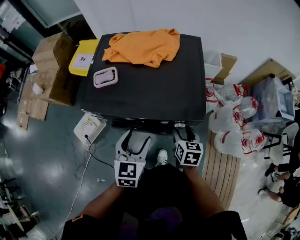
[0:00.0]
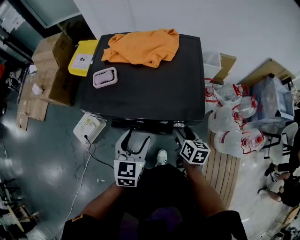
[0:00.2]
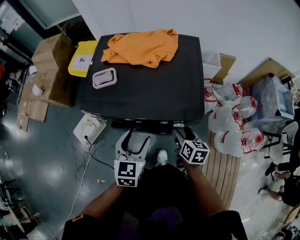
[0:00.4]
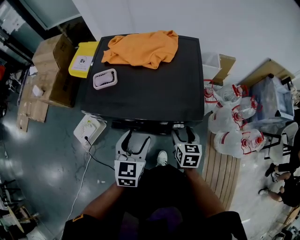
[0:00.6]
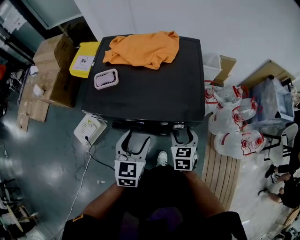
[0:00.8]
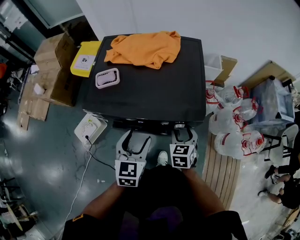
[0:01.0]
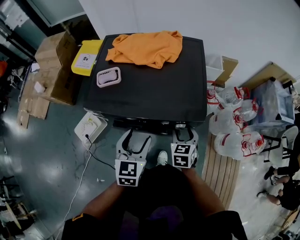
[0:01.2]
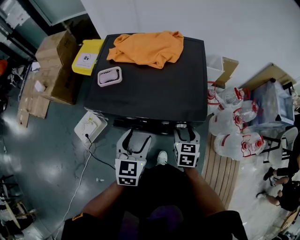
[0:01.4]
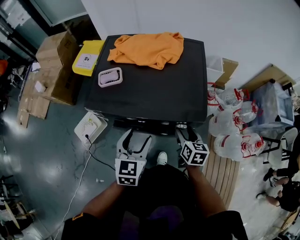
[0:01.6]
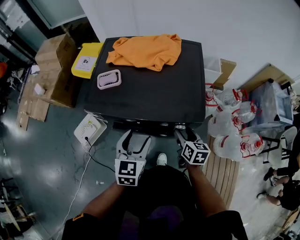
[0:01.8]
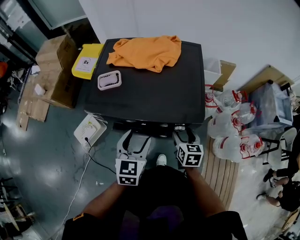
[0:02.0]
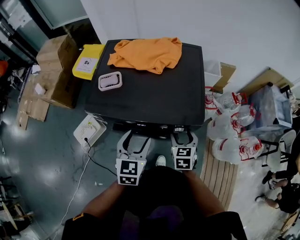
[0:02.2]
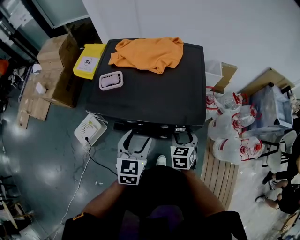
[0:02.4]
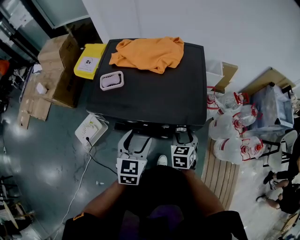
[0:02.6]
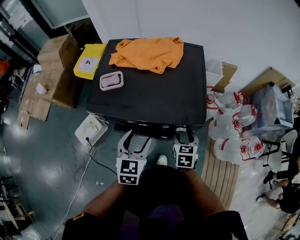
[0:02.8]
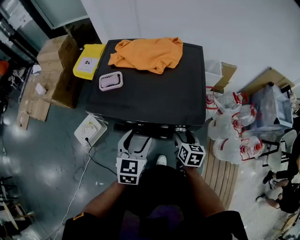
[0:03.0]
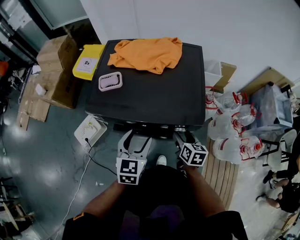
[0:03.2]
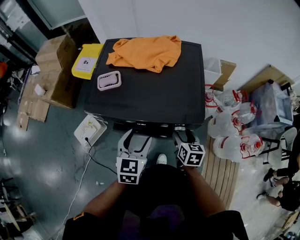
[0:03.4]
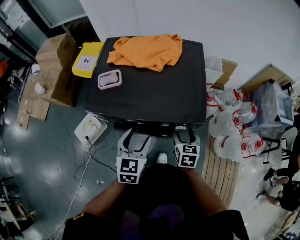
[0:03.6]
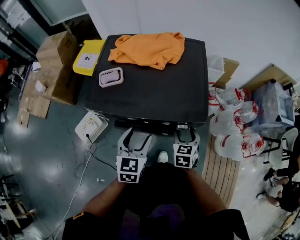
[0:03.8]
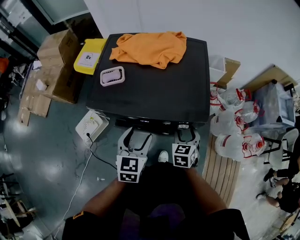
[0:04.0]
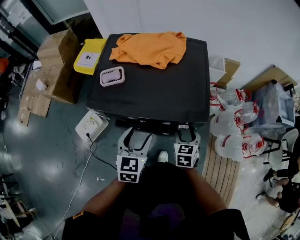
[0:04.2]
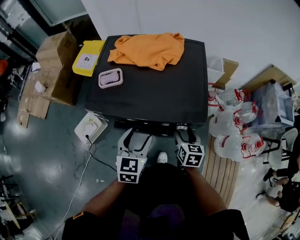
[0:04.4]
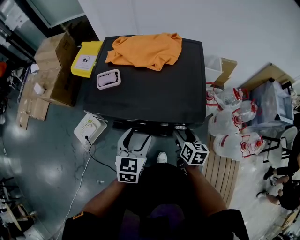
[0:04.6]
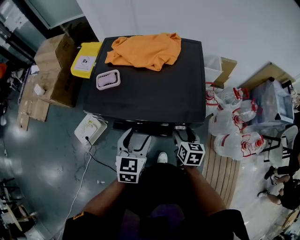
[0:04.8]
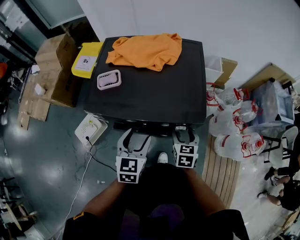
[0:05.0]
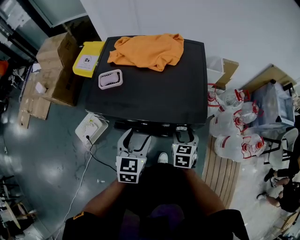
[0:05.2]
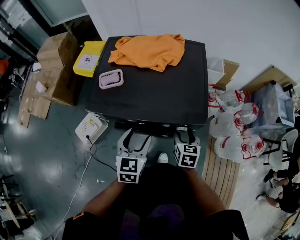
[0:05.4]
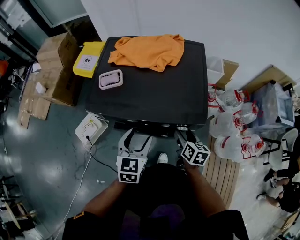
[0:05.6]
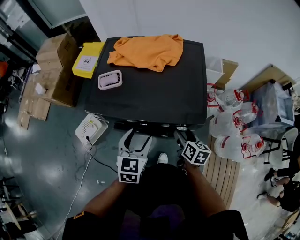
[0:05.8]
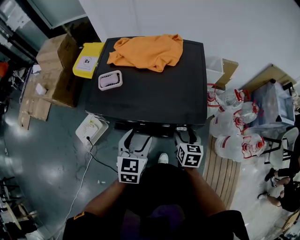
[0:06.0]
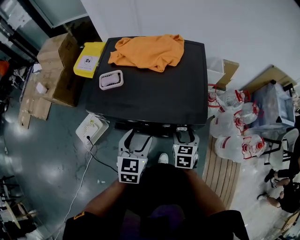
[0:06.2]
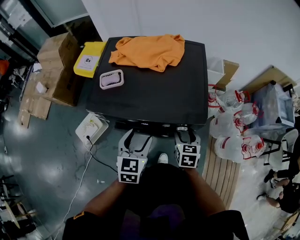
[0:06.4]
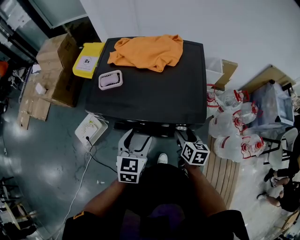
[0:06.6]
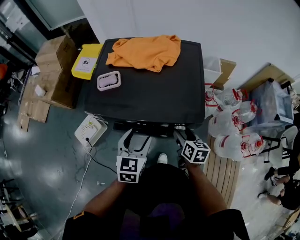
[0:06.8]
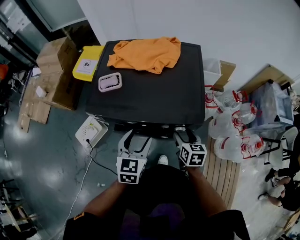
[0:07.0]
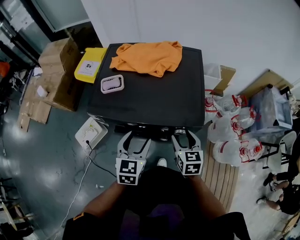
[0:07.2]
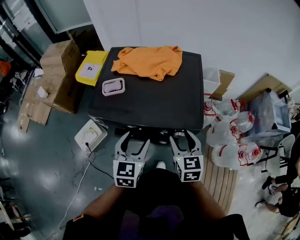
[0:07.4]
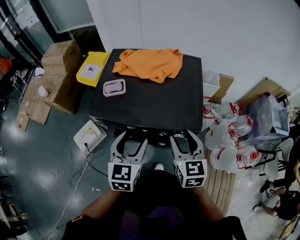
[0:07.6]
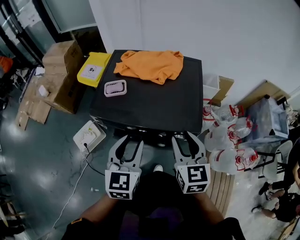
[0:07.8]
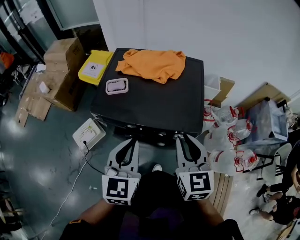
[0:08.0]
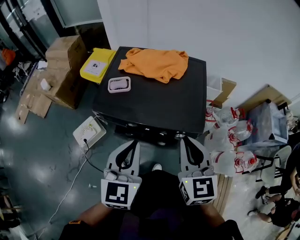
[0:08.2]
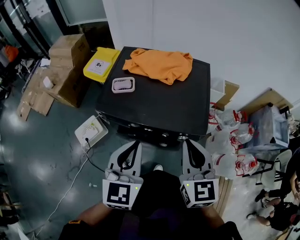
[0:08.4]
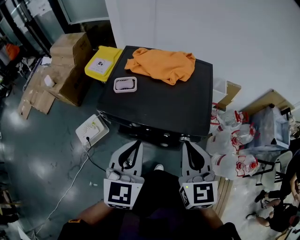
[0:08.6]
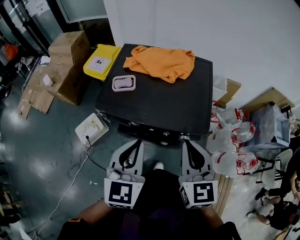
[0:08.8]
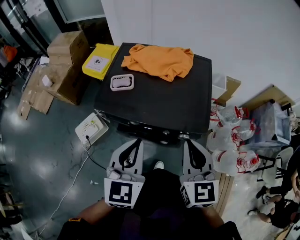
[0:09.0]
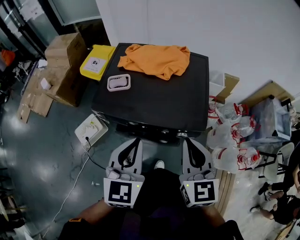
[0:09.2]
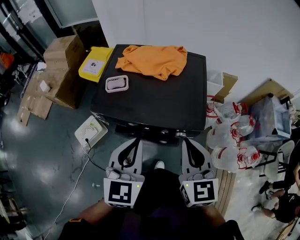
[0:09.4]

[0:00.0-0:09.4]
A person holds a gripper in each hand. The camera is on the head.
0:04.8 to 0:06.2: The right gripper rotates roughly 20 degrees.
0:06.2 to 0:07.8: The left gripper heads upward, covering about 10 cm, while the right gripper shifts some 20 cm upward, and rotates some 20 degrees.
0:07.8 to 0:09.4: The right gripper shifts by about 5 cm, and closes up. The left gripper closes up.

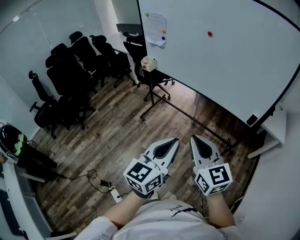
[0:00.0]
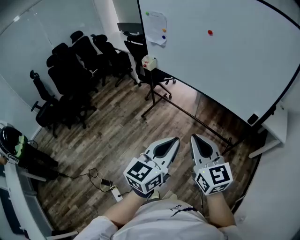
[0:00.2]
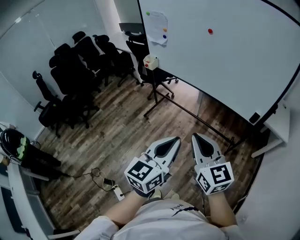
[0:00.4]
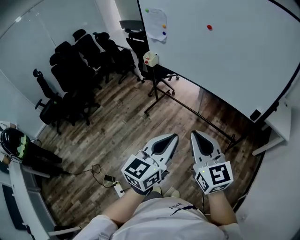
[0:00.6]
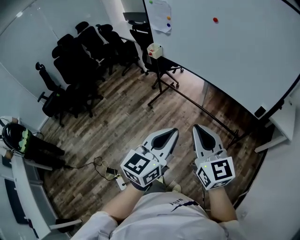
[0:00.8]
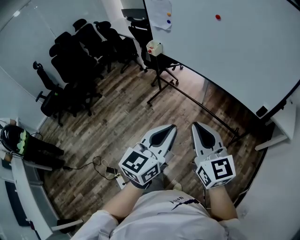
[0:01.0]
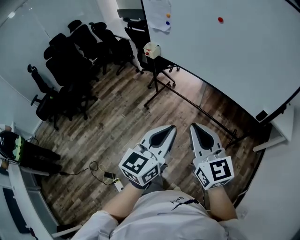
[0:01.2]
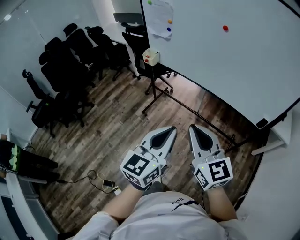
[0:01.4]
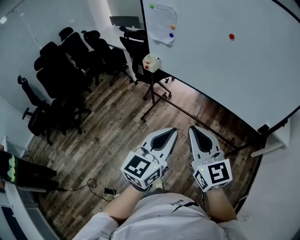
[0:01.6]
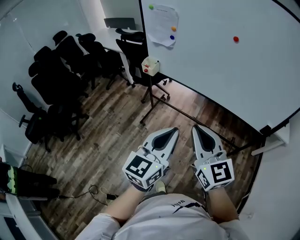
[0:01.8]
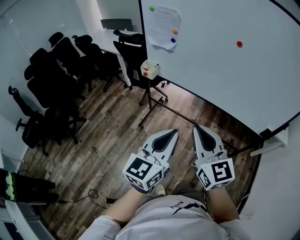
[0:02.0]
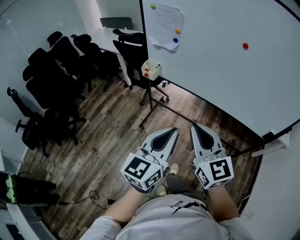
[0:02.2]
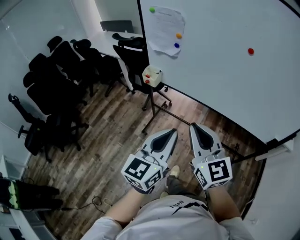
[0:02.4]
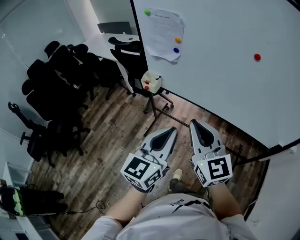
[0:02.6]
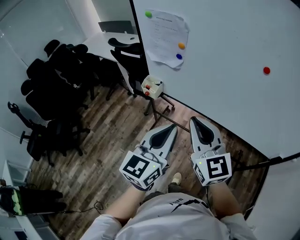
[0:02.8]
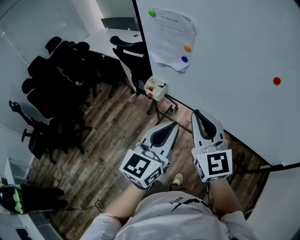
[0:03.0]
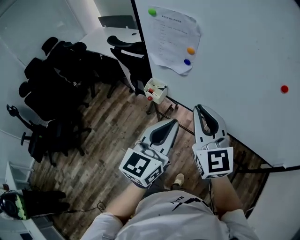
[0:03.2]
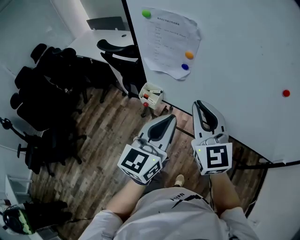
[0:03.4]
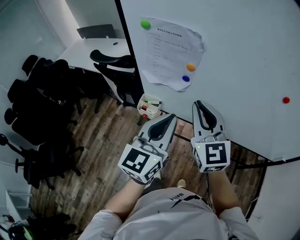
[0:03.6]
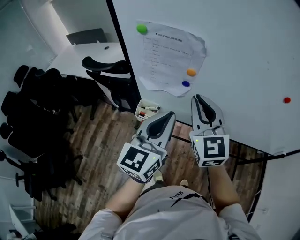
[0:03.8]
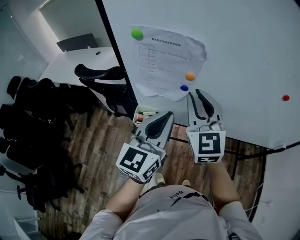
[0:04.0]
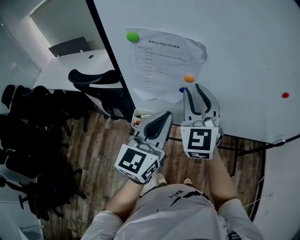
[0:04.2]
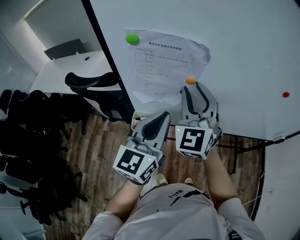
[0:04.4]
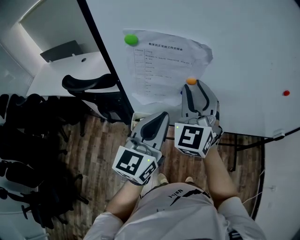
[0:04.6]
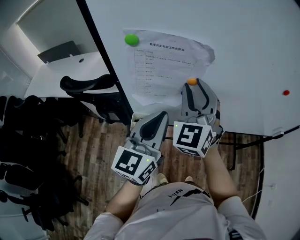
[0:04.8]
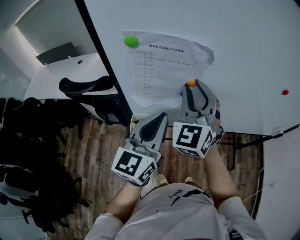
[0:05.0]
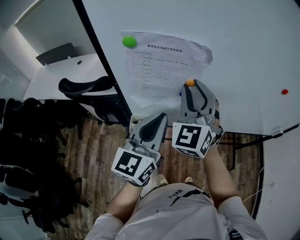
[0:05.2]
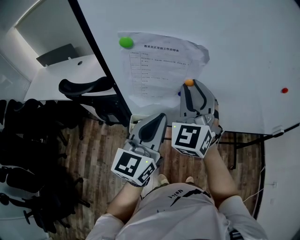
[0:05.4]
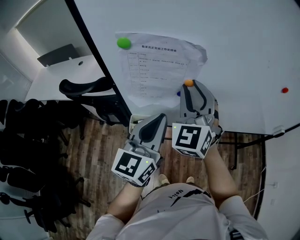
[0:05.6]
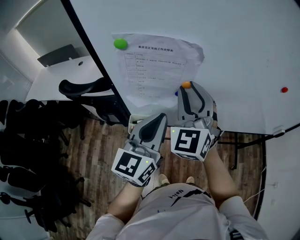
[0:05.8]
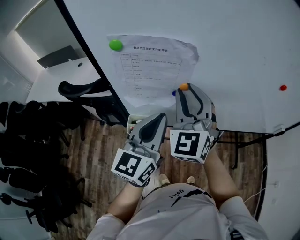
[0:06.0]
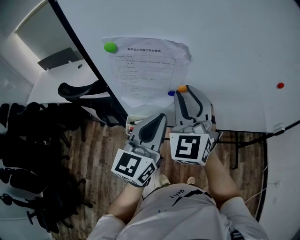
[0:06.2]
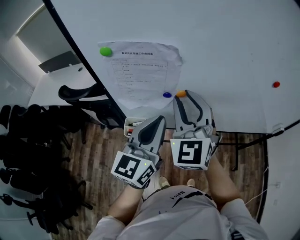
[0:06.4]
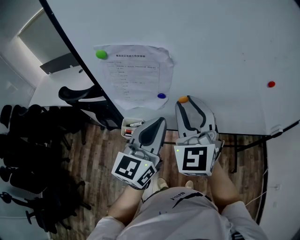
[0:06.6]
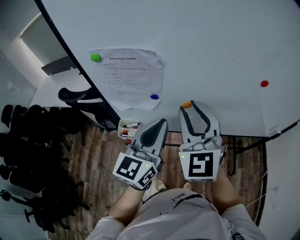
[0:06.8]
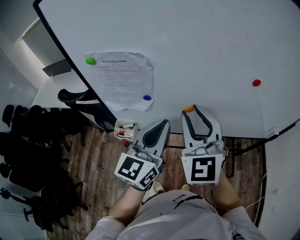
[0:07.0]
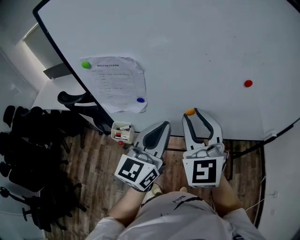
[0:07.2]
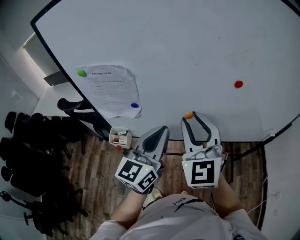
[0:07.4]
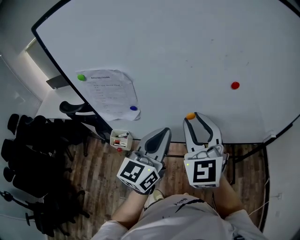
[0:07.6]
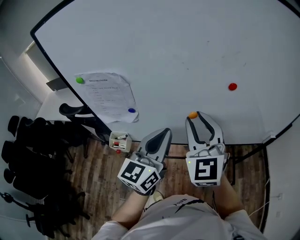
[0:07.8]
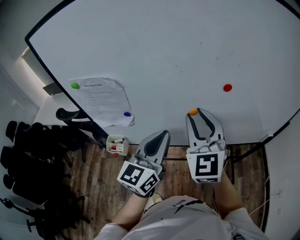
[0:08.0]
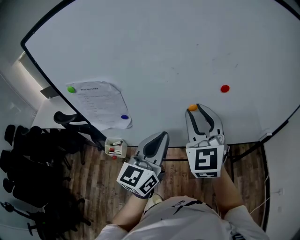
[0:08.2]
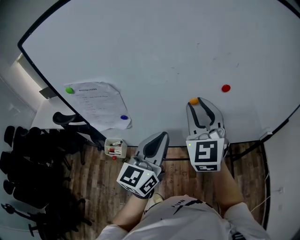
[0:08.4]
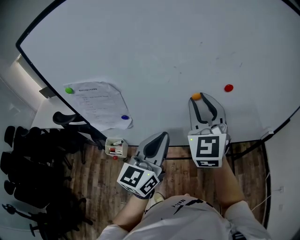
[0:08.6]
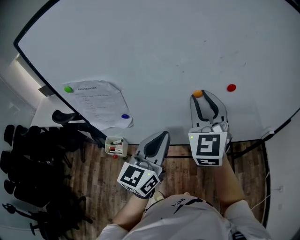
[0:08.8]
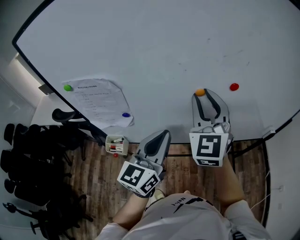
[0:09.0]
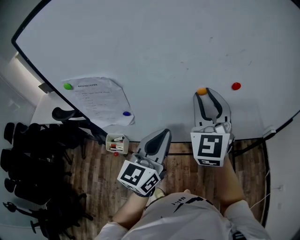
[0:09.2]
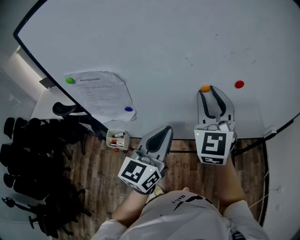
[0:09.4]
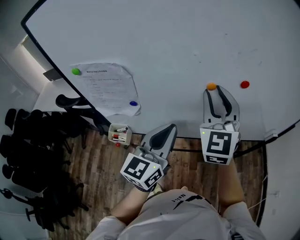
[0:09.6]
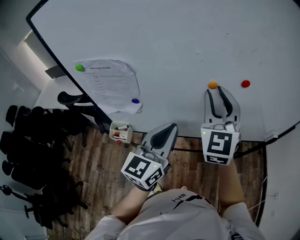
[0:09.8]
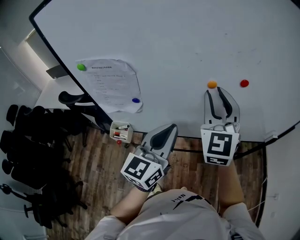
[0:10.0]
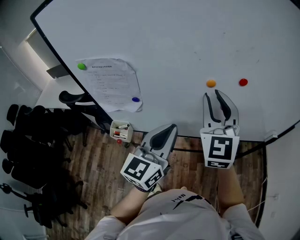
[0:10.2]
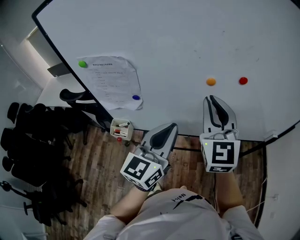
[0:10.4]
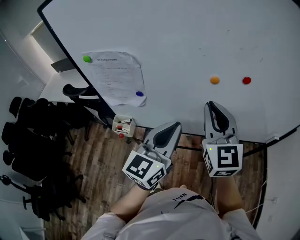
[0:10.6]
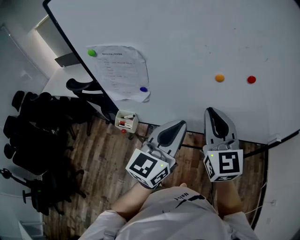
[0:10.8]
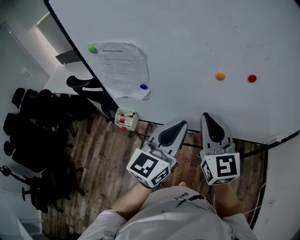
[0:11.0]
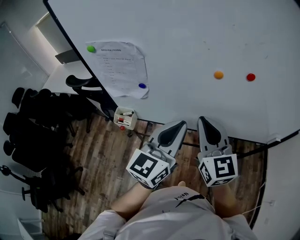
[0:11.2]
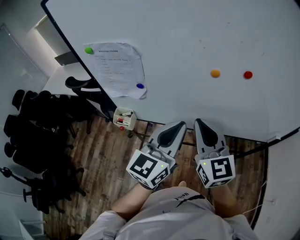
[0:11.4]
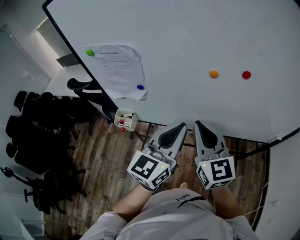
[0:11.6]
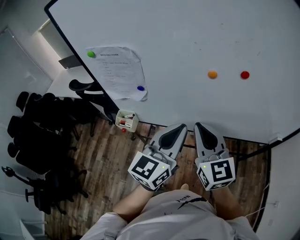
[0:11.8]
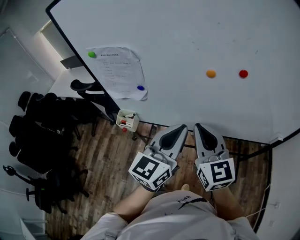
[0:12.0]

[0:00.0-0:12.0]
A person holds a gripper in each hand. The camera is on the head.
0:00.0 to 0:01.6: The grippers both shift forward and to the left by approximately 20 cm.
0:01.6 to 0:03.0: The grippers both shift forward by roughly 35 cm.
0:03.0 to 0:04.4: The left gripper shifts by some 25 cm, and turns by some 20 degrees. The right gripper moves approximately 25 cm, rotates approximately 50 degrees, and opens its fingers.
0:04.4 to 0:06.0: The grippers move only a little.
0:06.0 to 0:07.6: The two grippers go some 20 cm to the right.
0:07.6 to 0:09.0: The right gripper goes approximately 10 cm forward.
0:09.0 to 0:10.4: The right gripper goes about 5 cm backward.
0:10.4 to 0:12.0: The left gripper changes place by approximately 5 cm. Meanwhile the right gripper shifts roughly 10 cm backward and downward, and swivels roughly 20 degrees.

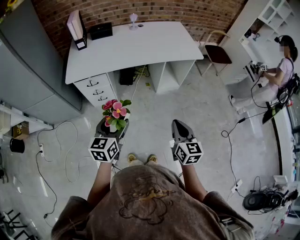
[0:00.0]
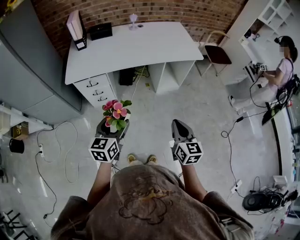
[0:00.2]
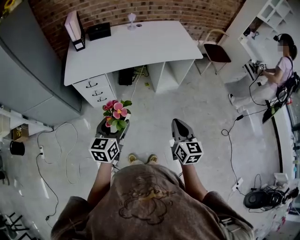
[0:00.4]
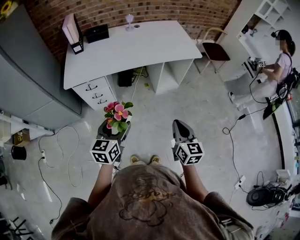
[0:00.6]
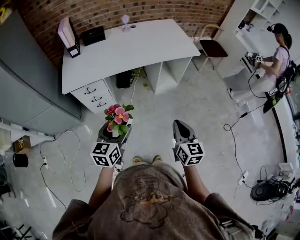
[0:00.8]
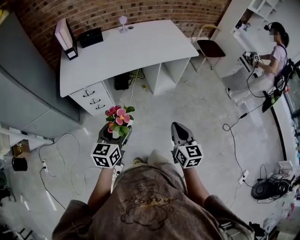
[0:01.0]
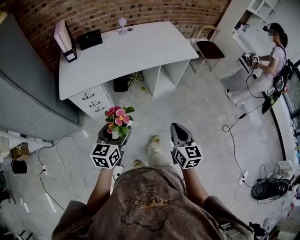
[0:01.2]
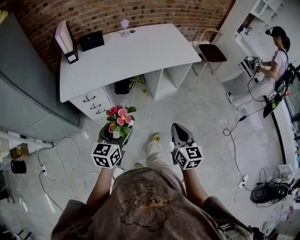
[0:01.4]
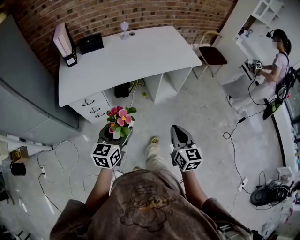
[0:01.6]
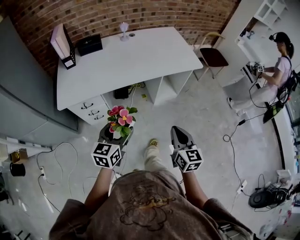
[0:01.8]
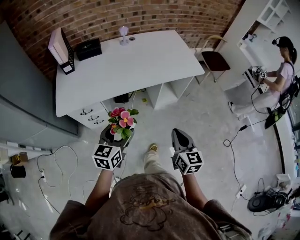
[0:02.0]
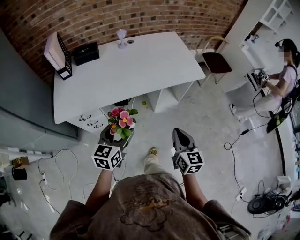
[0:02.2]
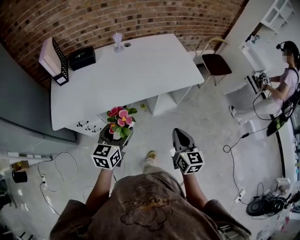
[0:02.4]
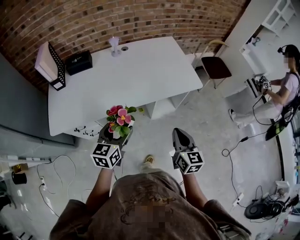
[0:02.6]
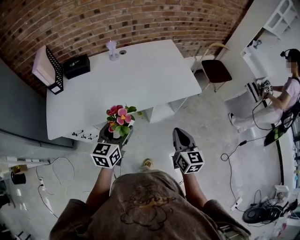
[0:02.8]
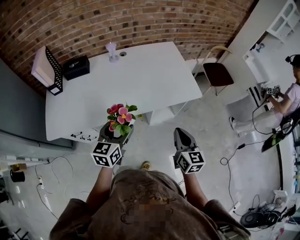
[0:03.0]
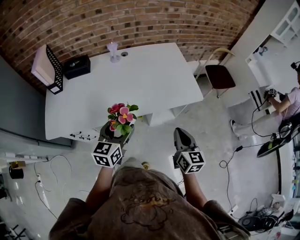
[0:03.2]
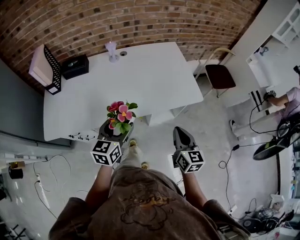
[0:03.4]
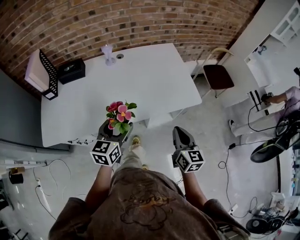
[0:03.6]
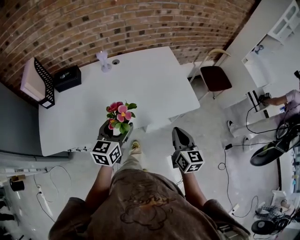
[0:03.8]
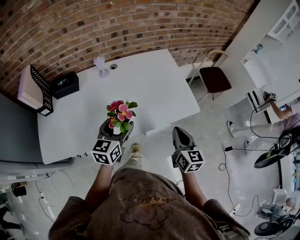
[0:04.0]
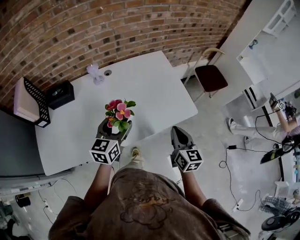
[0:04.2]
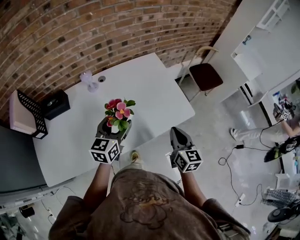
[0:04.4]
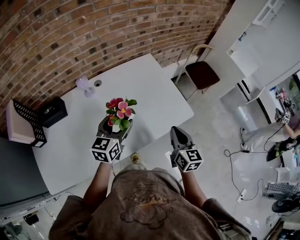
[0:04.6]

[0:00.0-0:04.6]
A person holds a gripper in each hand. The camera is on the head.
0:00.0 to 0:01.6: The two grippers go roughly 10 cm forward.
0:01.6 to 0:03.0: Both grippers move forward, some 30 cm.
0:03.0 to 0:04.6: The two grippers go roughly 25 cm forward.
